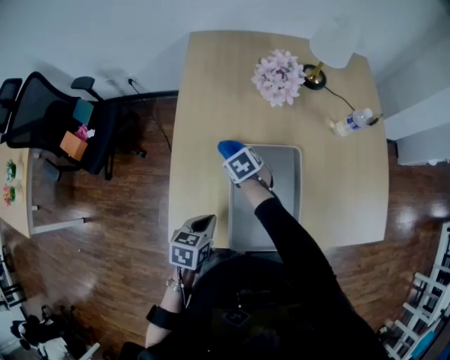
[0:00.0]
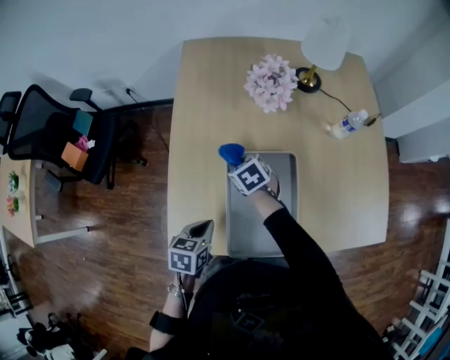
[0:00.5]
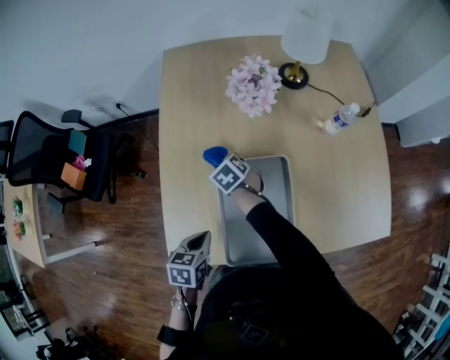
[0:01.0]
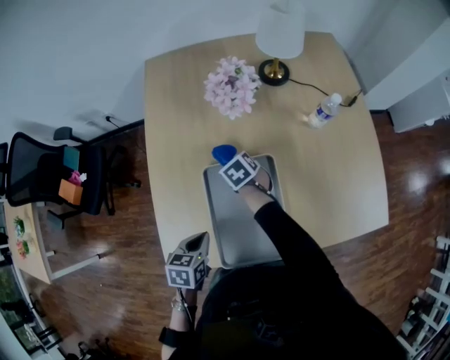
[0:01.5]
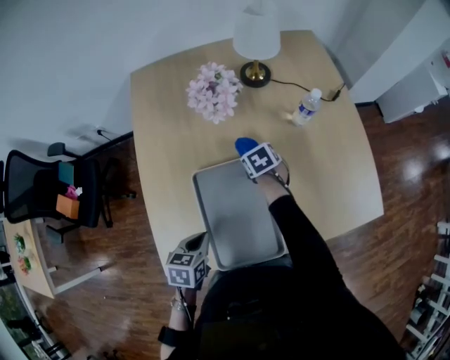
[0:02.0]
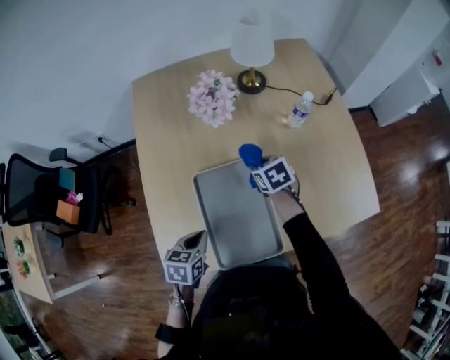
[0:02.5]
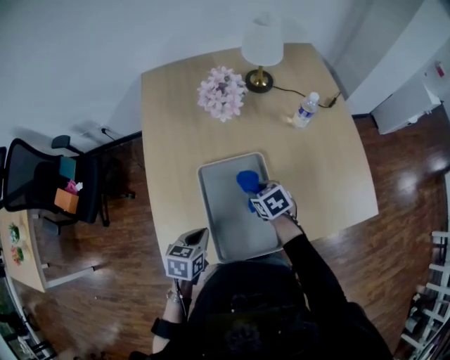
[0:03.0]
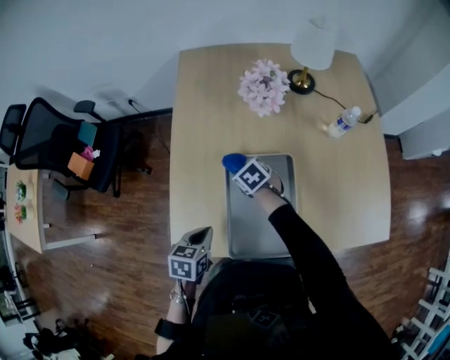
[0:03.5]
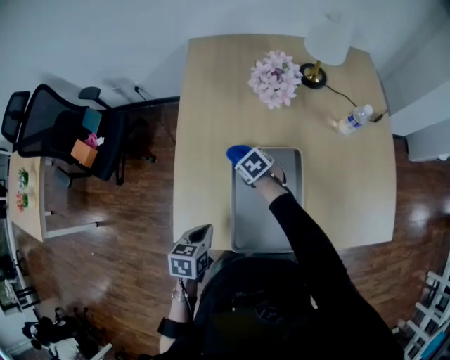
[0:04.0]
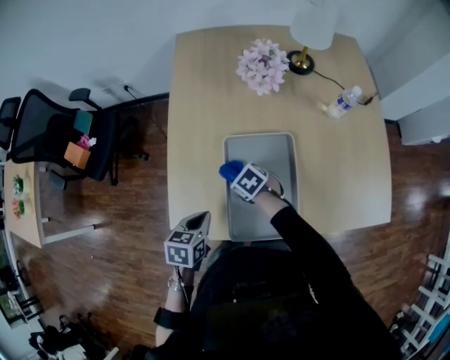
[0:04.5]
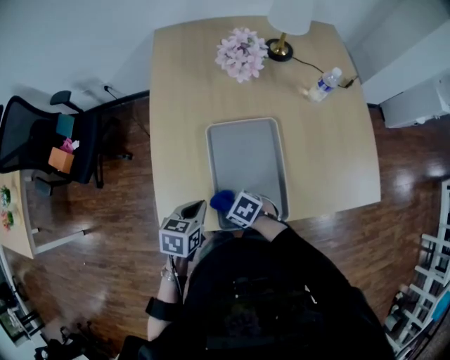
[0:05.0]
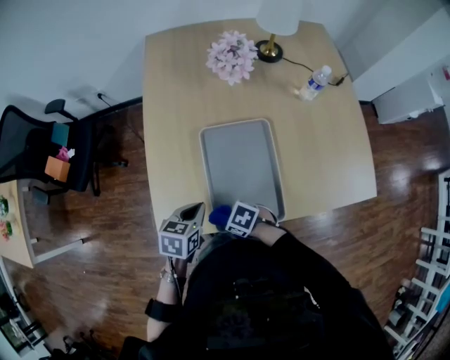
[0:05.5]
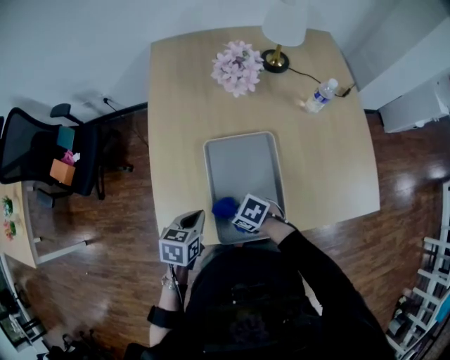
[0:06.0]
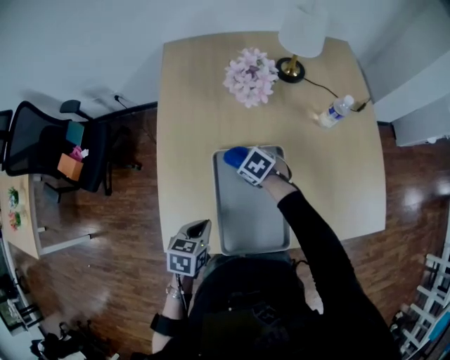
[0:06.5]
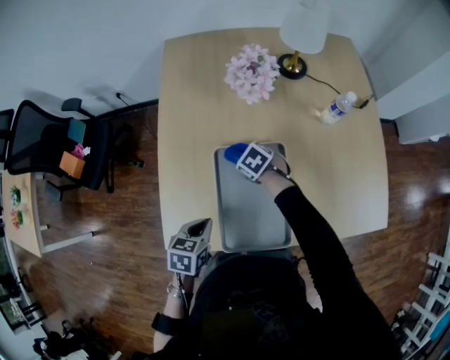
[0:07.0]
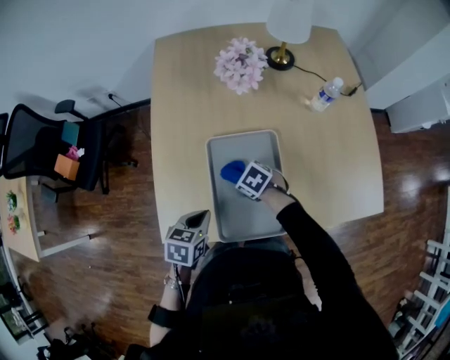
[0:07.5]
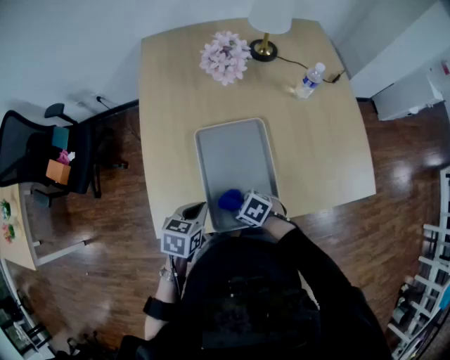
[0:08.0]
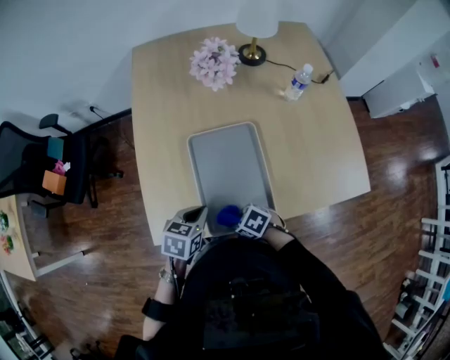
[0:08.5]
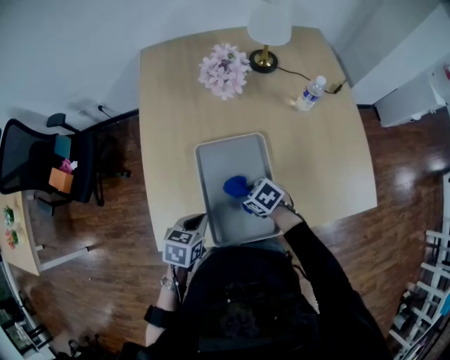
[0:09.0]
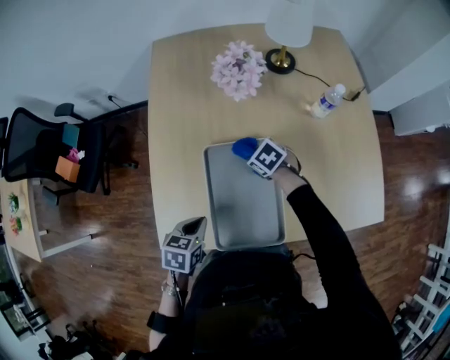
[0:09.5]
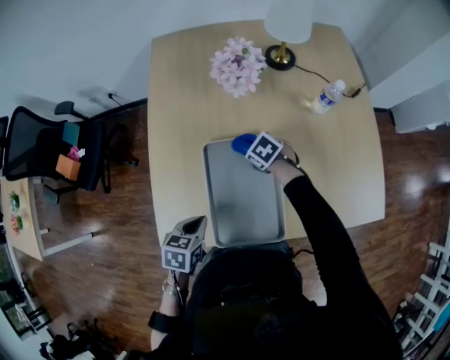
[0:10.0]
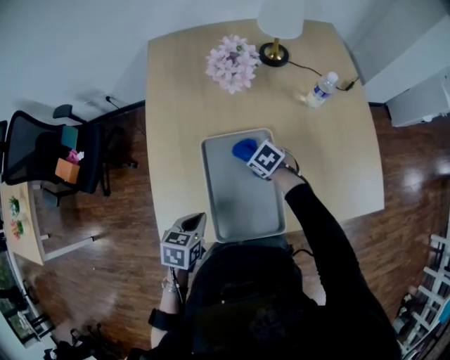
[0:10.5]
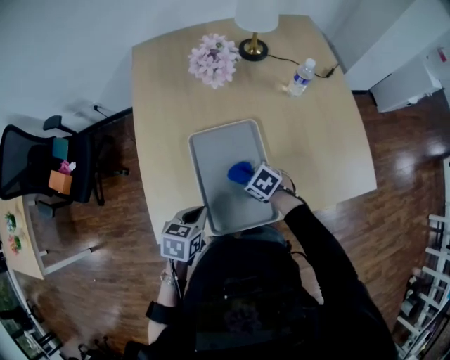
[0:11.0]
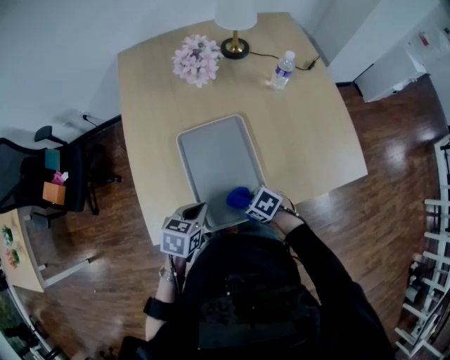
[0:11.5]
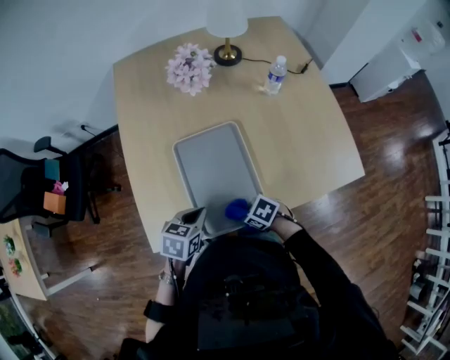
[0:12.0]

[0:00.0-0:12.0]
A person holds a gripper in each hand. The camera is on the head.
0:00.0 to 0:02.0: The right gripper heads to the right, covering some 20 cm, and rotates approximately 20 degrees; the left gripper moves to the right, about 5 cm.
0:02.0 to 0:04.0: The right gripper moves about 5 cm upward and comes back, and turns by roughly 30 degrees; the left gripper shifts by some 10 cm.
0:04.0 to 0:06.0: The right gripper changes place by roughly 20 cm, and swivels roughly 20 degrees.
0:08.0 to 0:10.0: The right gripper shifts by roughly 25 cm.
0:10.0 to 0:12.0: The right gripper changes place by about 30 cm, while the left gripper moves approximately 5 cm.

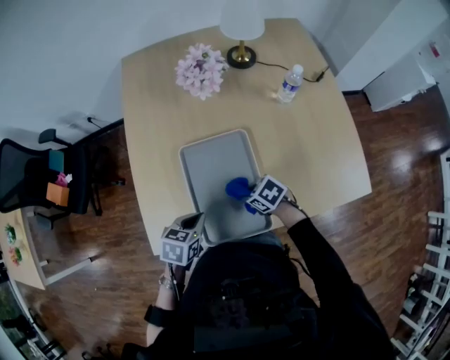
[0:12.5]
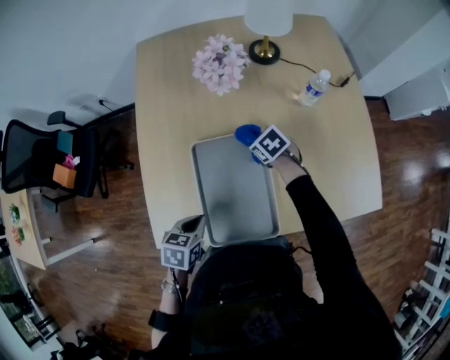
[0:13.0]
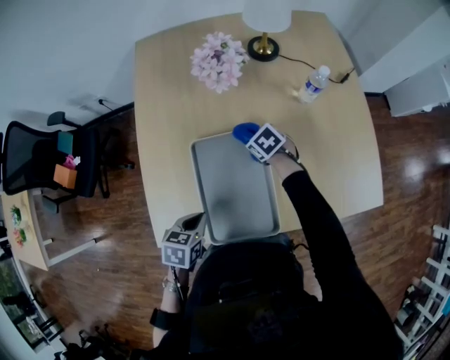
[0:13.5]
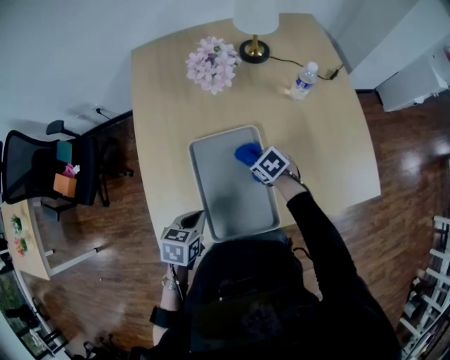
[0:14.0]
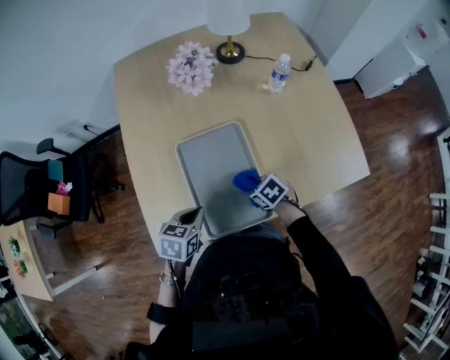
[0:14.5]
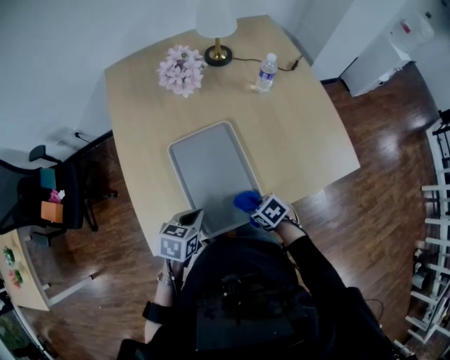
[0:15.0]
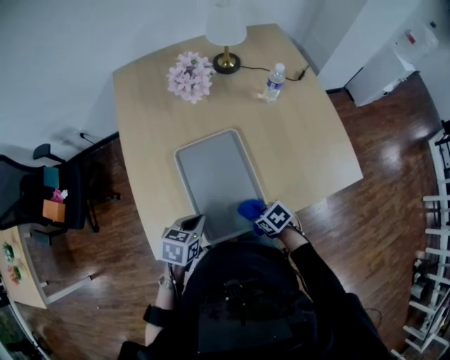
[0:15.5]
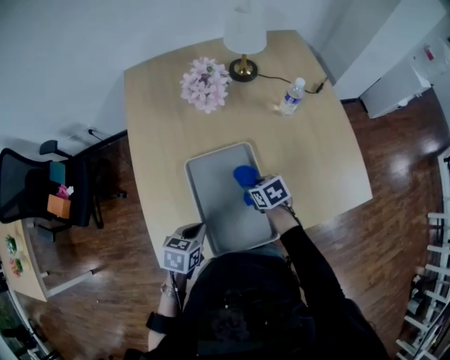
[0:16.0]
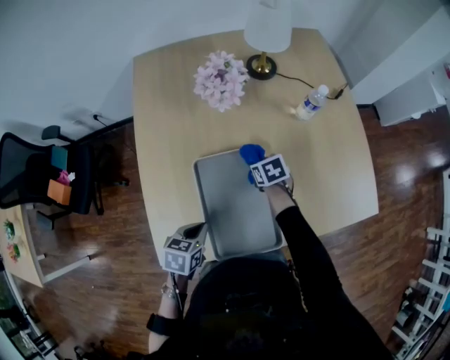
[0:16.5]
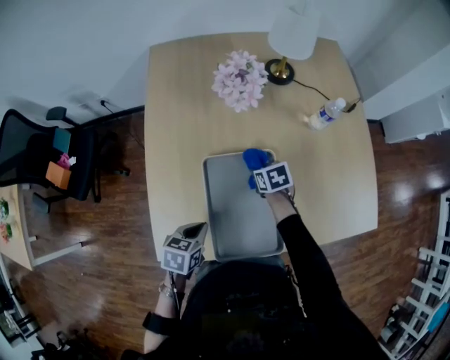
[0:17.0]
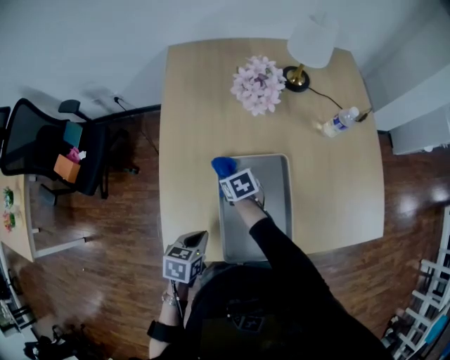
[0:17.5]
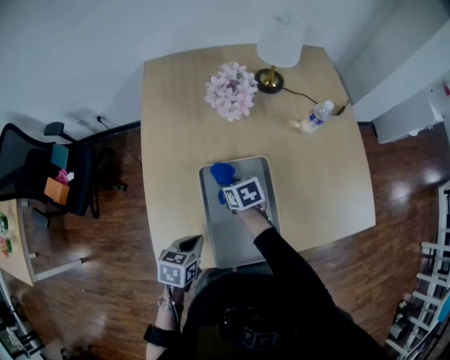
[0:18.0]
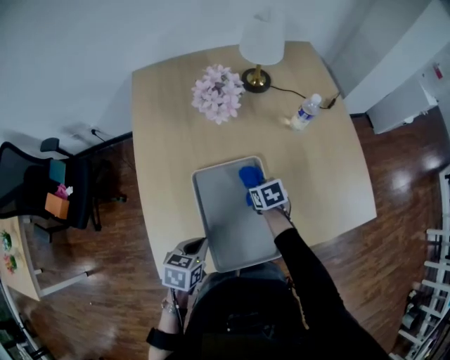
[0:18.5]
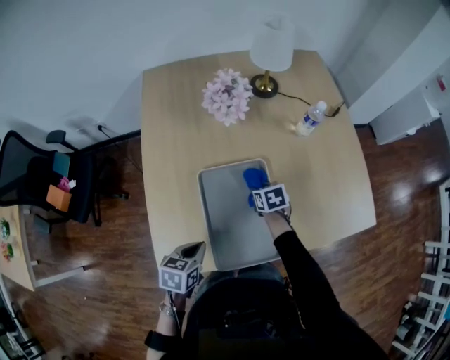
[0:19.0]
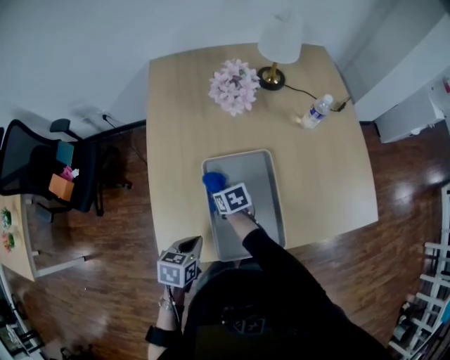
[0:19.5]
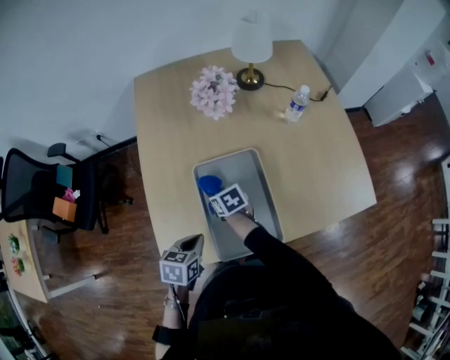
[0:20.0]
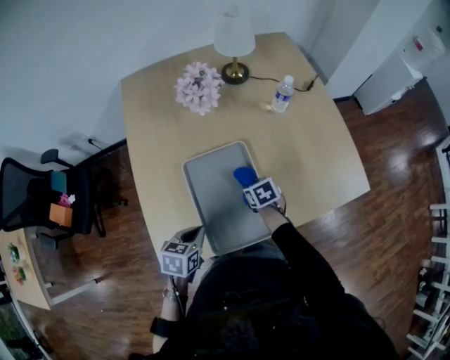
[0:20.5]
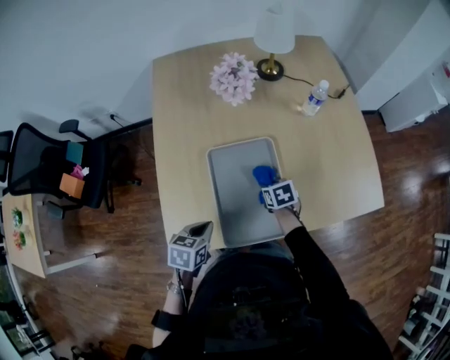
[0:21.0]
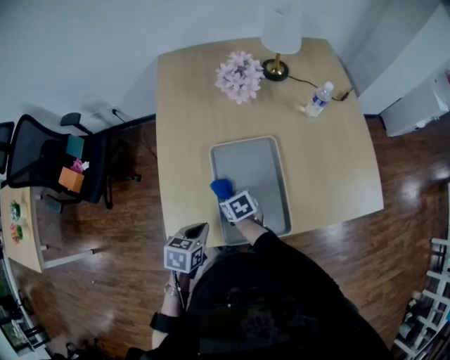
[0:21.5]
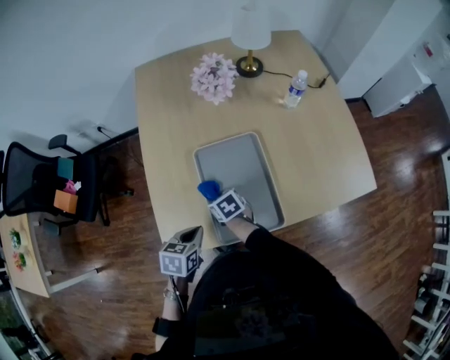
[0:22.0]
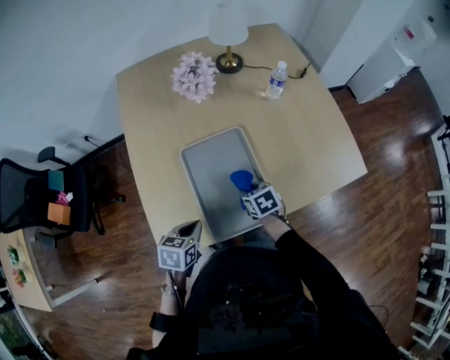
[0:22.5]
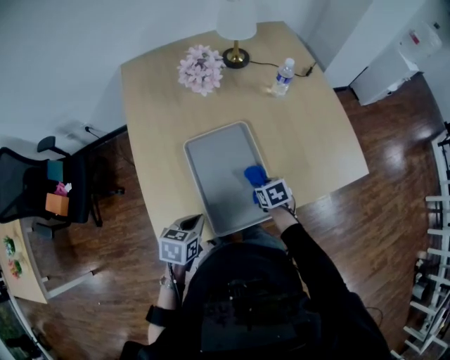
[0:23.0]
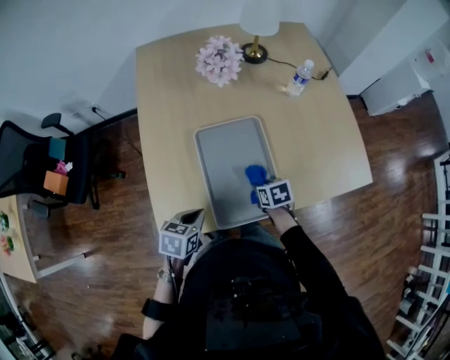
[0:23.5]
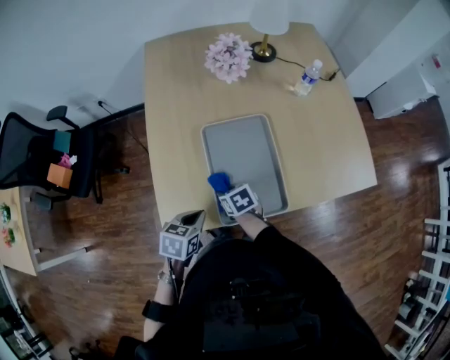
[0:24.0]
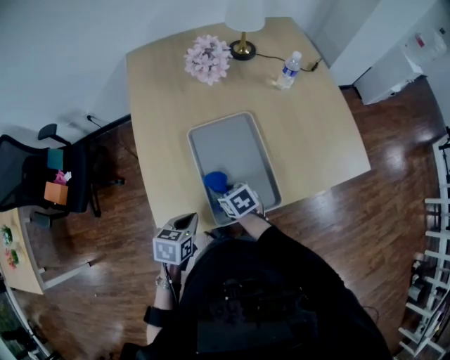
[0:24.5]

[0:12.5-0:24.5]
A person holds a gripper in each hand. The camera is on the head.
0:14.5 to 0:16.5: The right gripper ends up some 20 cm from where it was.
0:16.5 to 0:18.5: The right gripper goes to the left and returns, about 20 cm each way.
0:18.5 to 0:20.5: The right gripper is displaced backward by roughly 5 cm, and goes to the left and returns, some 15 cm each way.
0:20.5 to 0:22.5: The right gripper goes roughly 5 cm backward, and reaches approximately 20 cm to the left, then returns.
0:22.5 to 0:24.5: The right gripper goes approximately 10 cm to the left.

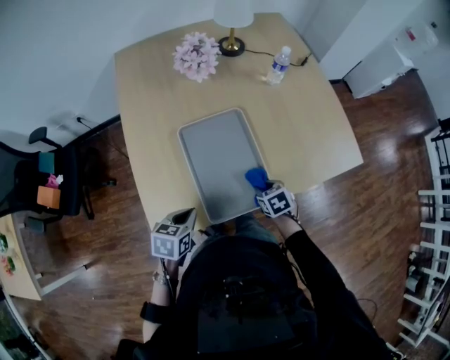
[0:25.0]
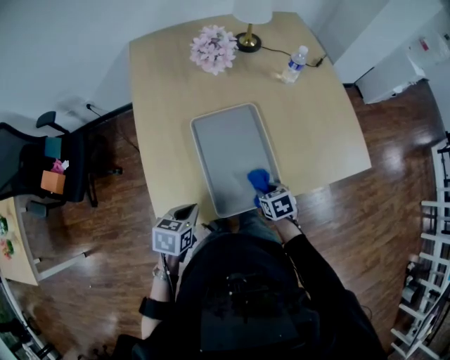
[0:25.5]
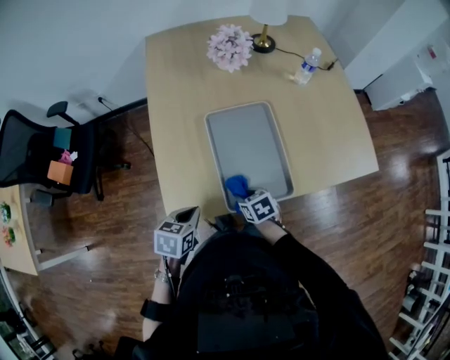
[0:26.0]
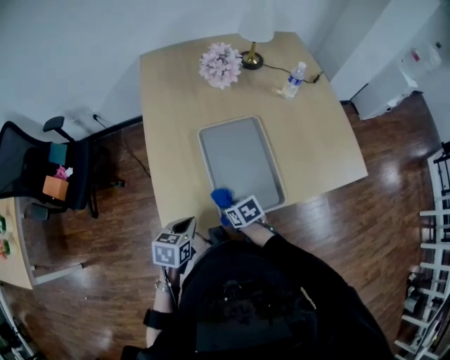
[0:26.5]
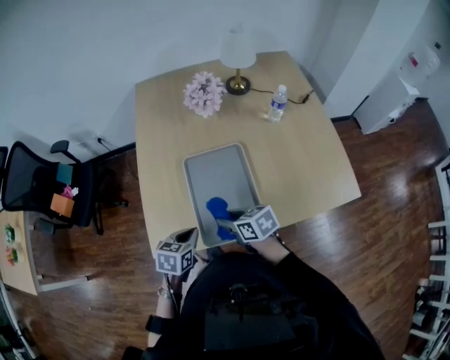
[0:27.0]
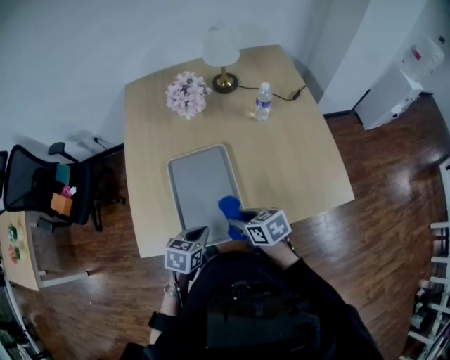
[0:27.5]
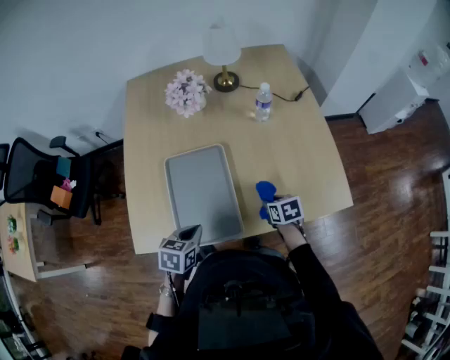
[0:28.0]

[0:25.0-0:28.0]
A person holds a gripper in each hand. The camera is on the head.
0:25.0 to 0:26.5: The right gripper moves to the left, some 20 cm. Meanwhile the left gripper heads to the left, covering some 5 cm.
0:26.5 to 0:28.0: The right gripper is displaced to the right by about 35 cm; the left gripper travels to the right by some 20 cm.
